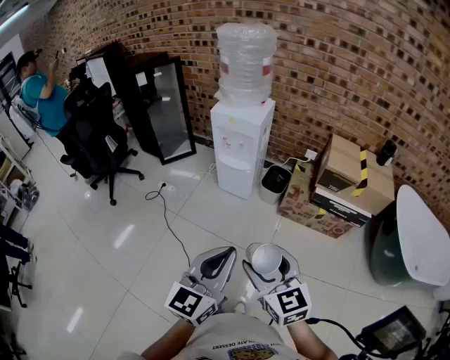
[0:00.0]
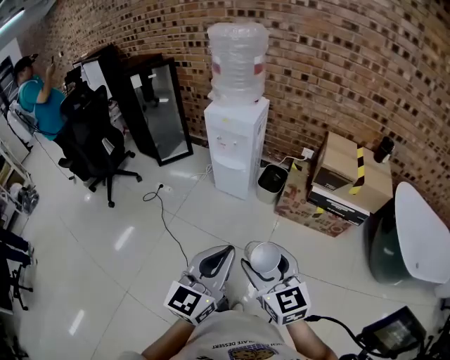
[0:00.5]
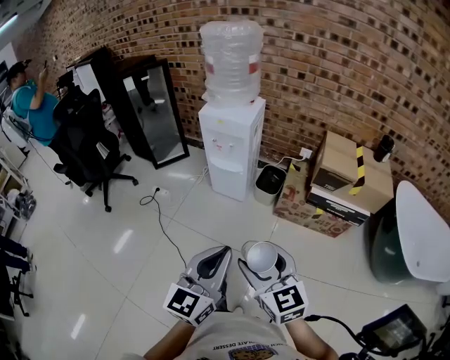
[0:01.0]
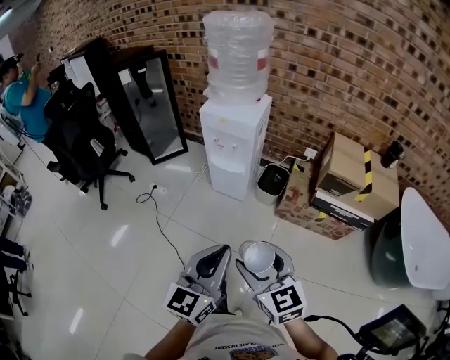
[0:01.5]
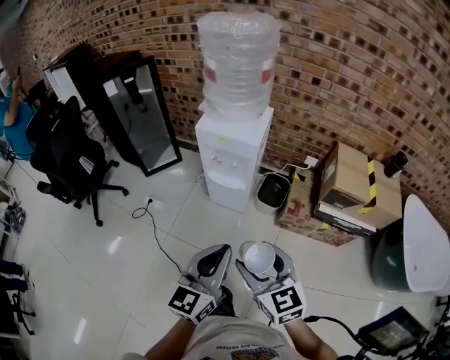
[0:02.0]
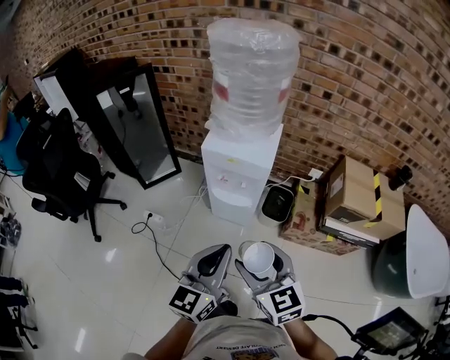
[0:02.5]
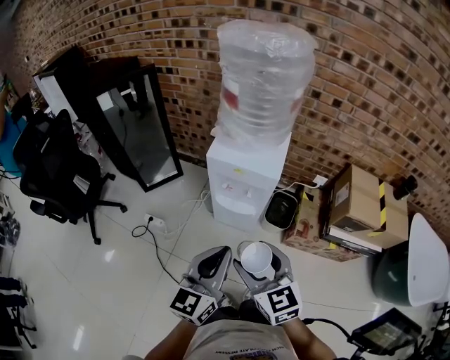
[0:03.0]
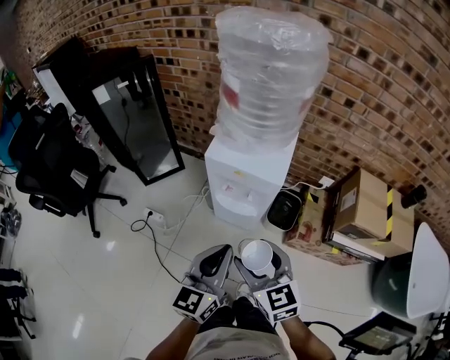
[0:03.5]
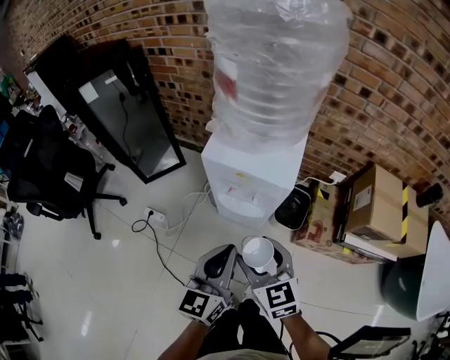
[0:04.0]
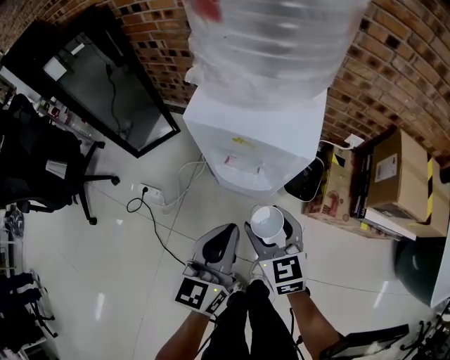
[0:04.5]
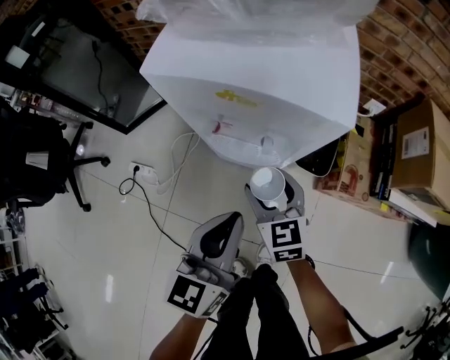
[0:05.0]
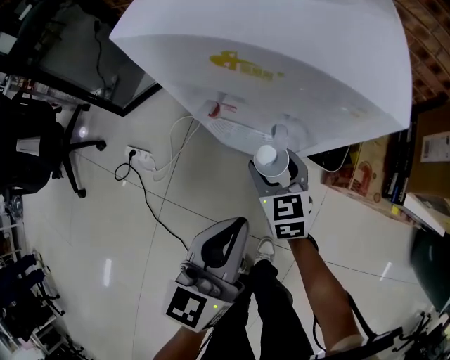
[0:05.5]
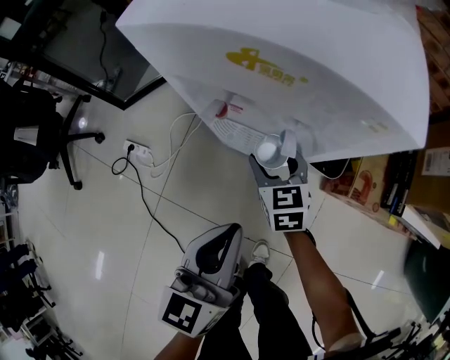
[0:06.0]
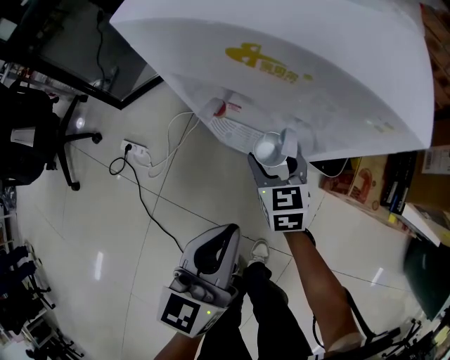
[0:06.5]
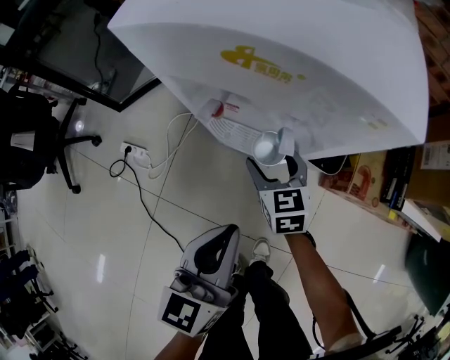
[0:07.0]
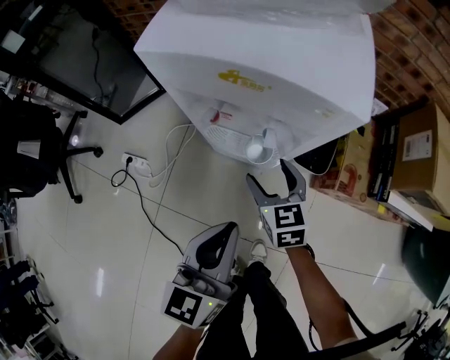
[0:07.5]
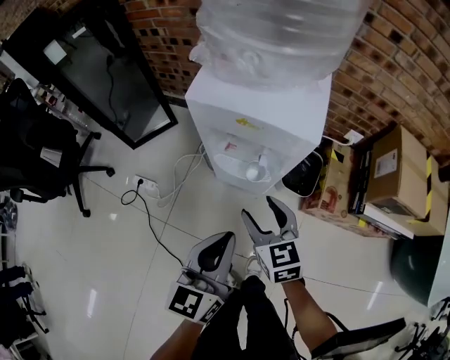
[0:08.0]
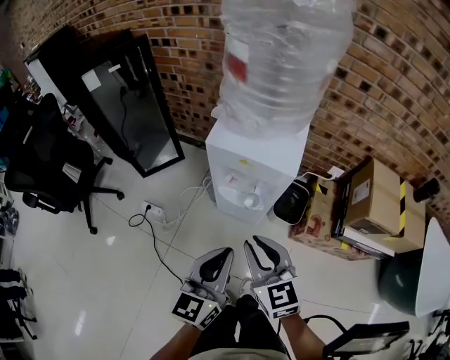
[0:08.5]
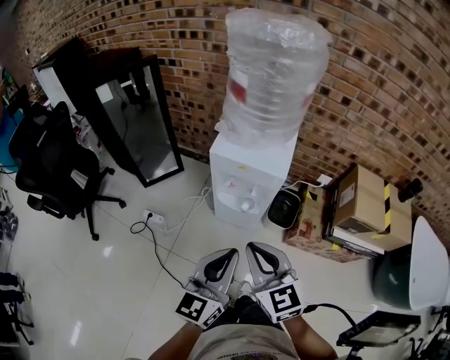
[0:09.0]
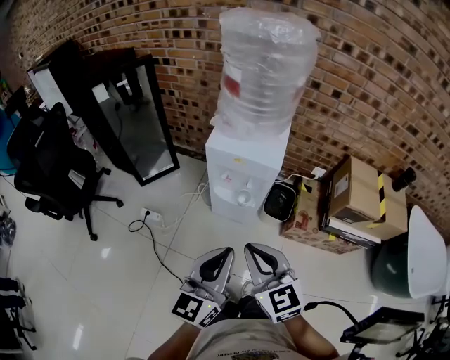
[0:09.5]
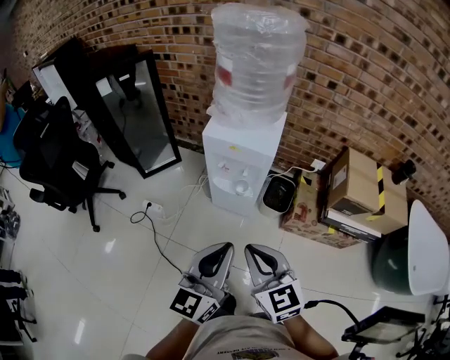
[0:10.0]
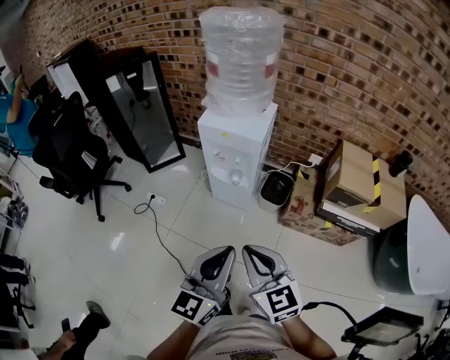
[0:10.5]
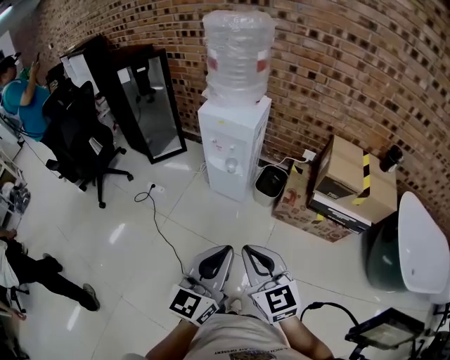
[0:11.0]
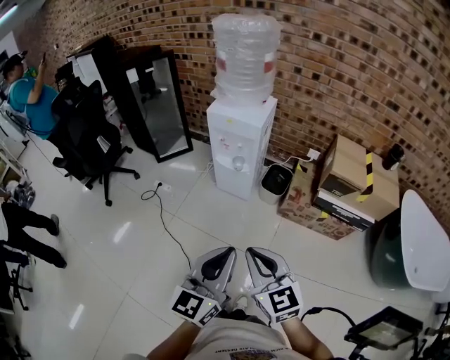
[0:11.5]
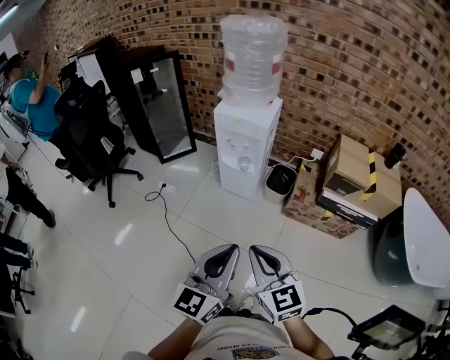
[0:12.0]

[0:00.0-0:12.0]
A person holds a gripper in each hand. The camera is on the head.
0:00.0 to 0:02.0: The grippers both shift forward by some 20 cm.
0:02.0 to 0:04.0: The two grippers go roughly 25 cm forward and downward.
0:04.0 to 0:06.0: The left gripper goes about 20 cm downward. The right gripper shifts about 40 cm downward and forward.
0:06.0 to 0:08.0: The left gripper shifts some 10 cm upward, while the right gripper shifts approximately 25 cm upward and backward.
0:08.0 to 0:10.0: The two grippers go about 30 cm upward and backward. The right gripper closes.
0:10.0 to 0:12.0: The grippers both shift backward by some 25 cm.

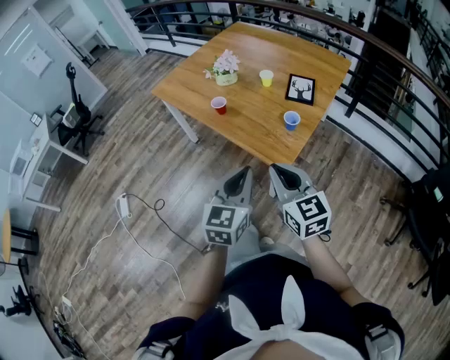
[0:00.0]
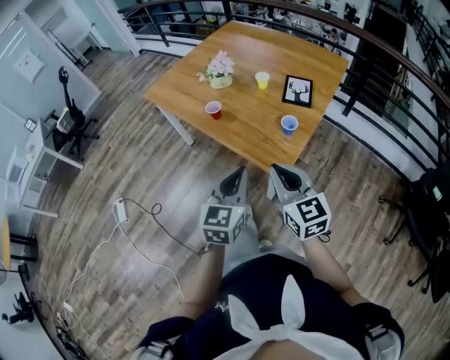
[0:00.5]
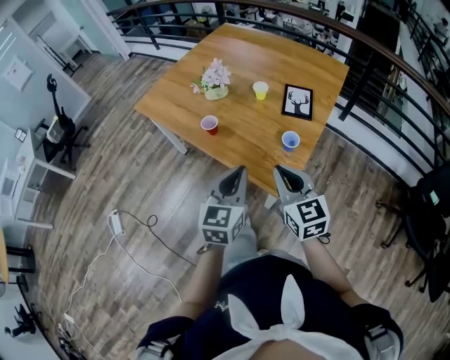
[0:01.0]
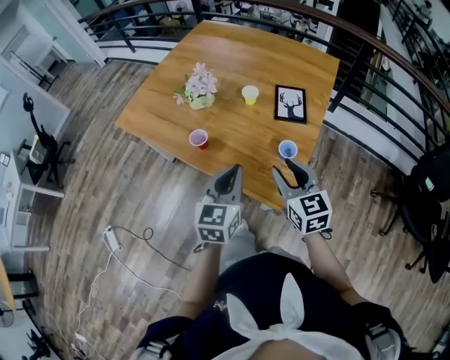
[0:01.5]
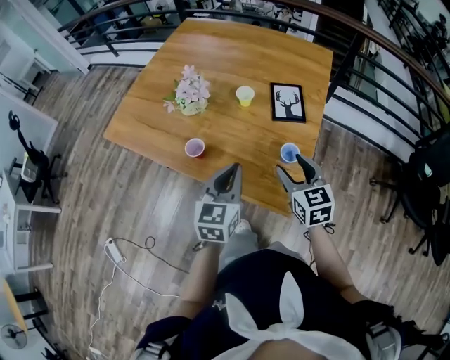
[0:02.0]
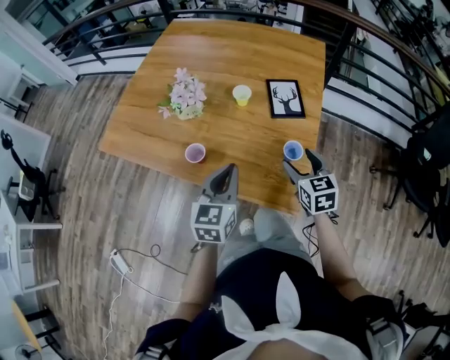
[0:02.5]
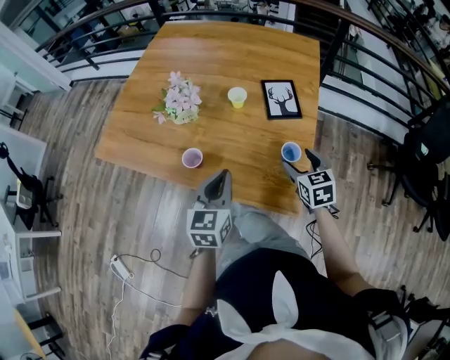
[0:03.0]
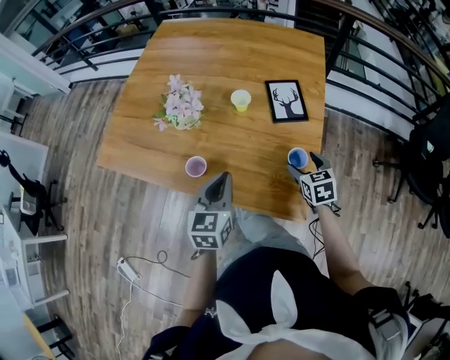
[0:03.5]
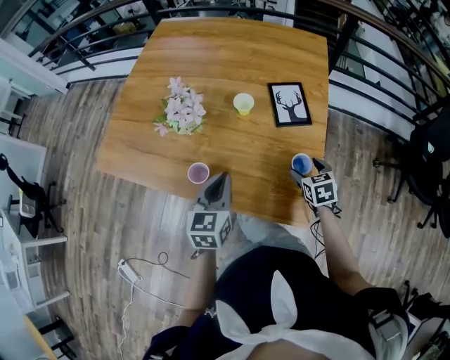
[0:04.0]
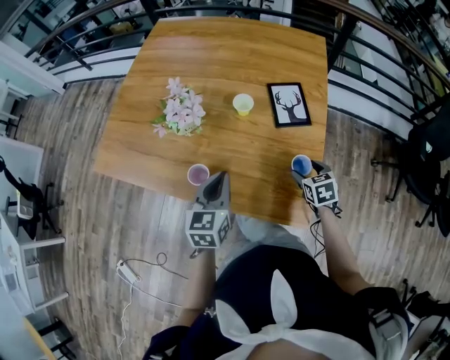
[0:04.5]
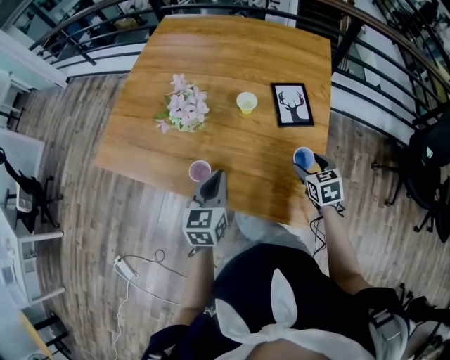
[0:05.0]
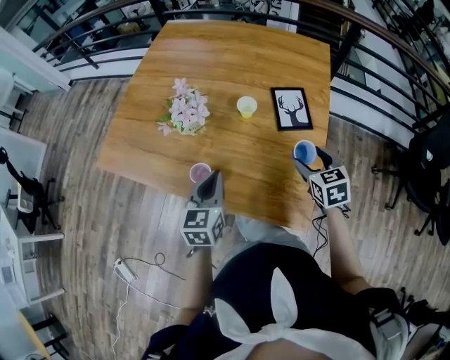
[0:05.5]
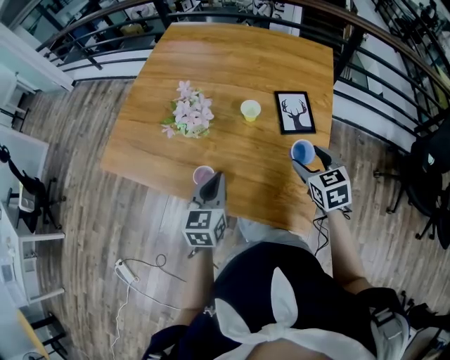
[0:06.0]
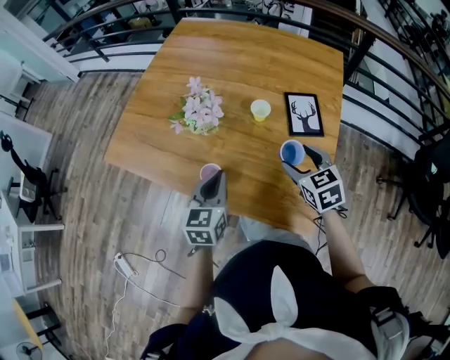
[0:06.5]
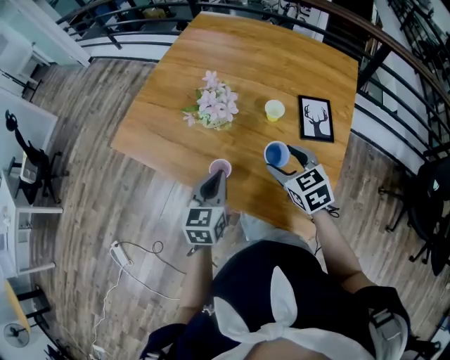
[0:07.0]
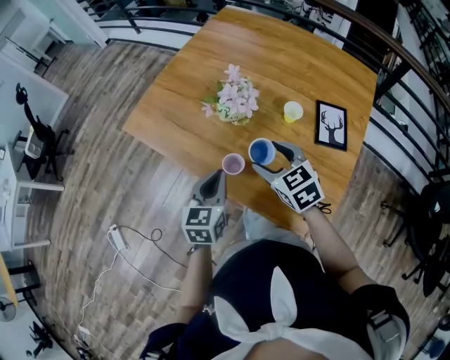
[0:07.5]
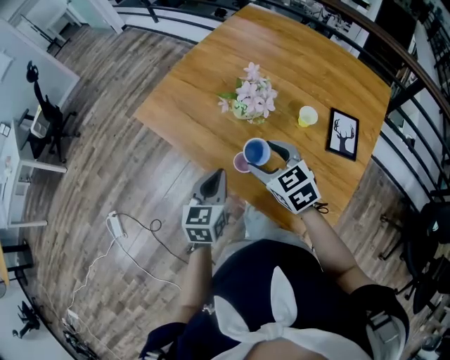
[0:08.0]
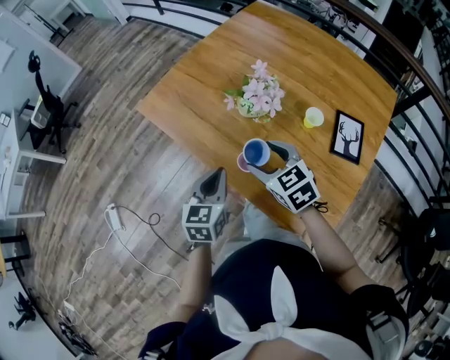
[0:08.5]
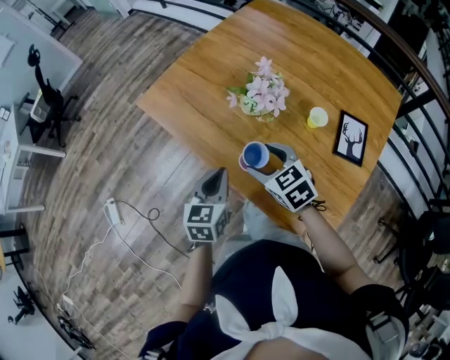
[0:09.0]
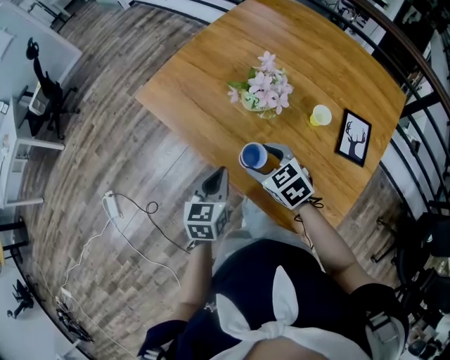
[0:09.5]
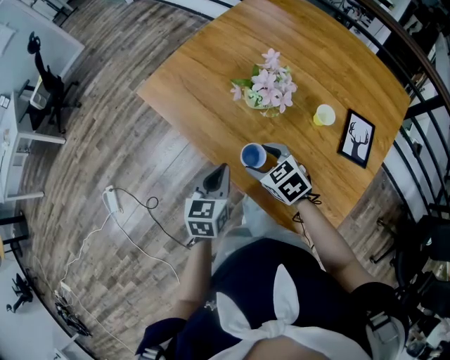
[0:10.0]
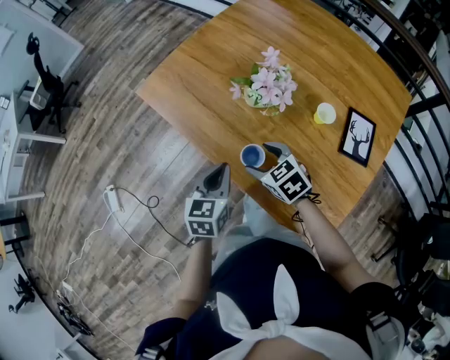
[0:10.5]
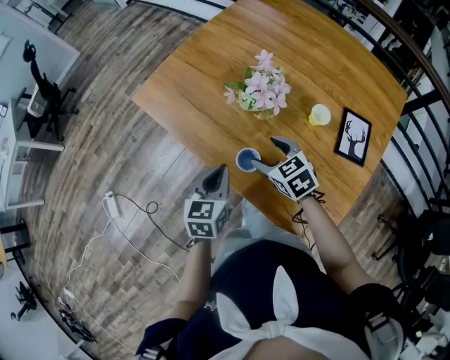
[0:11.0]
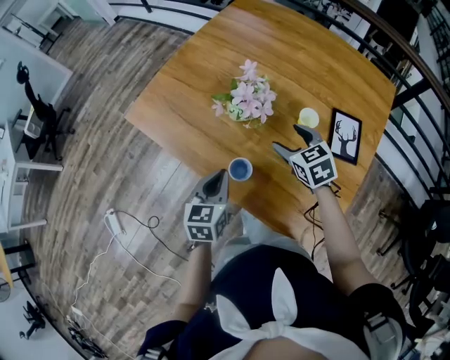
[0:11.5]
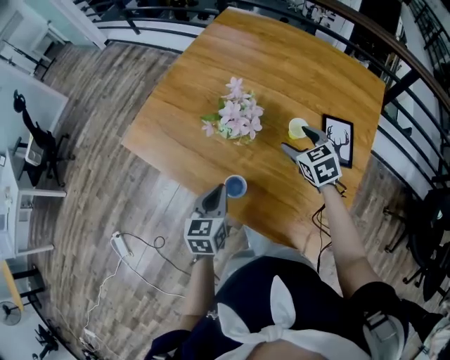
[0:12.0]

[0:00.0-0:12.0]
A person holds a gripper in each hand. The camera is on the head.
0:00.0 to 0:02.0: Both grippers move forward, approximately 30 cm. The right gripper swivels approximately 30 degrees, and opens its fingers.
0:02.0 to 0:04.0: The left gripper moves forward, to the left and downward, approximately 15 cm; the right gripper shifts roughly 20 cm downward and forward, and changes its angle by roughly 30 degrees.
0:04.0 to 0:06.0: The right gripper travels upward by roughly 15 cm.
0:06.0 to 0:08.0: The left gripper changes place by roughly 15 cm. The right gripper moves about 30 cm, and turns by approximately 40 degrees.
0:08.0 to 0:10.0: The right gripper is displaced downward by some 10 cm.
0:10.0 to 0:12.0: The right gripper shifts about 20 cm to the right, and changes its angle by about 30 degrees; the left gripper goes some 5 cm to the right.

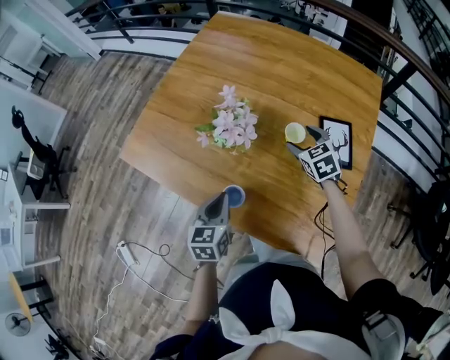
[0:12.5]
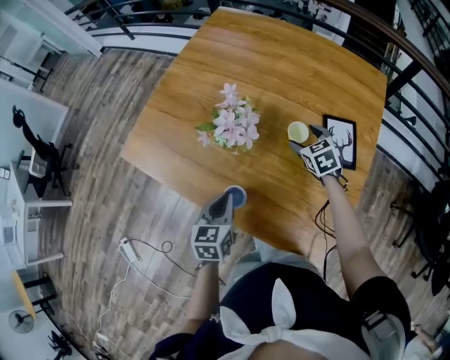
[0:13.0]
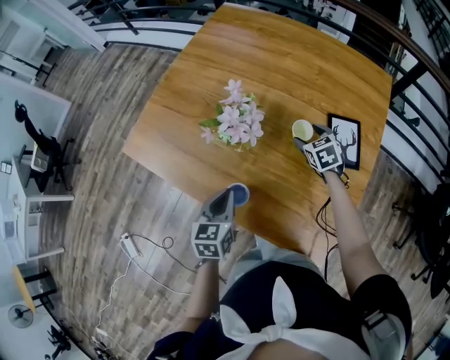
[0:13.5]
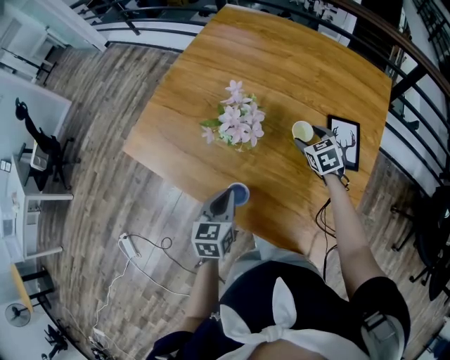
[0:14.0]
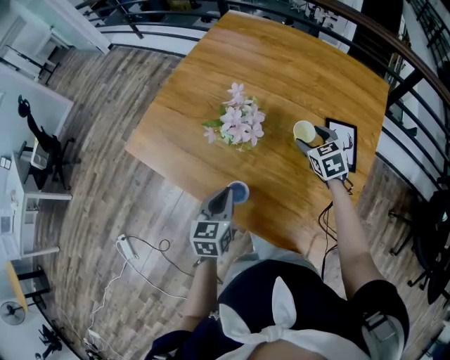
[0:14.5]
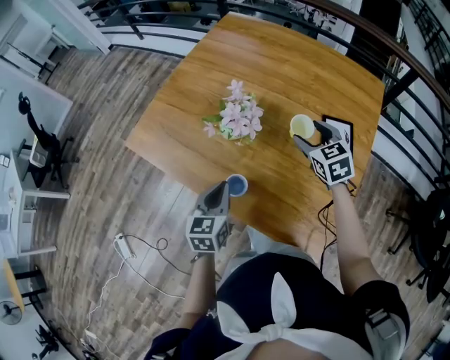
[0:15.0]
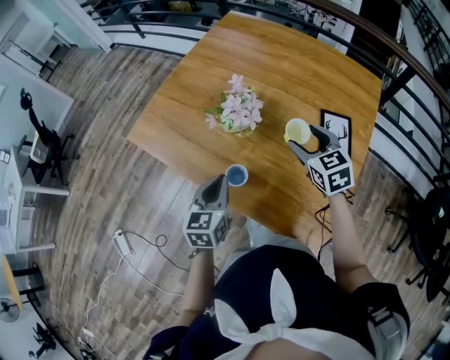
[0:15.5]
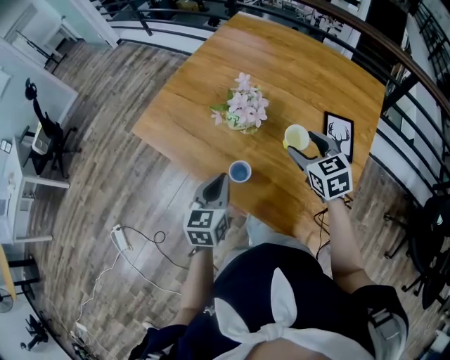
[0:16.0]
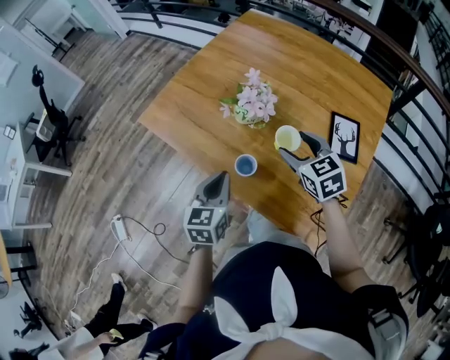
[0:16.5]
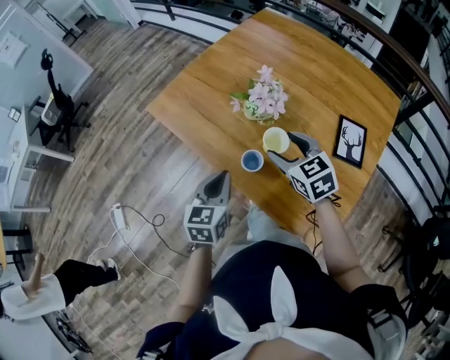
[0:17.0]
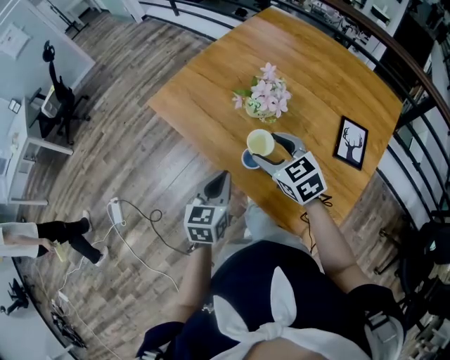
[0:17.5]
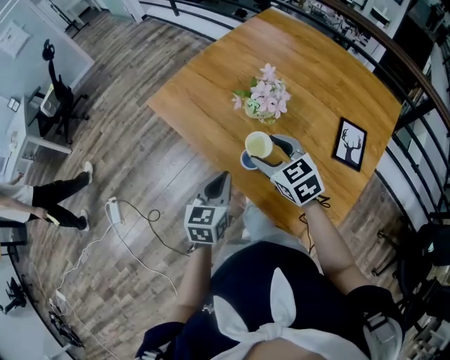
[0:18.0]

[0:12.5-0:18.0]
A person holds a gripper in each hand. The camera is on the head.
0:12.5 to 0:14.5: The grippers make only small movements.
0:14.5 to 0:16.0: The right gripper travels backward, upward and to the left by about 15 cm; the left gripper ends up roughly 5 cm from where it was.
0:16.0 to 0:18.0: The left gripper ends up about 5 cm from where it was. The right gripper shifts about 15 cm to the left, and swivels about 20 degrees.
